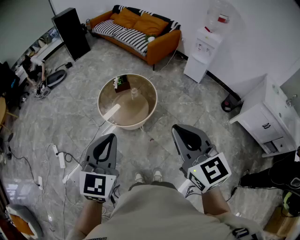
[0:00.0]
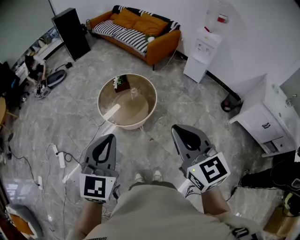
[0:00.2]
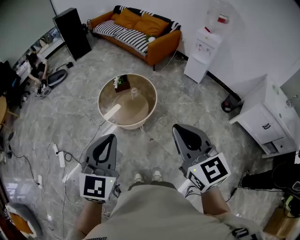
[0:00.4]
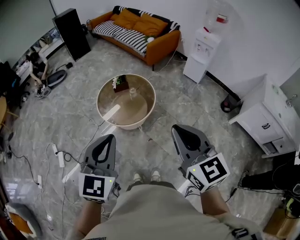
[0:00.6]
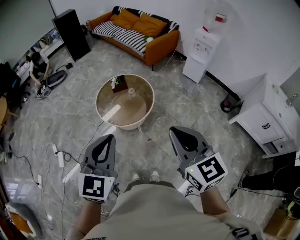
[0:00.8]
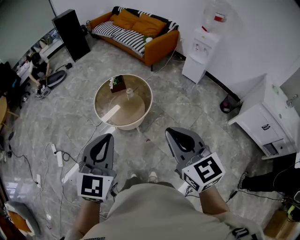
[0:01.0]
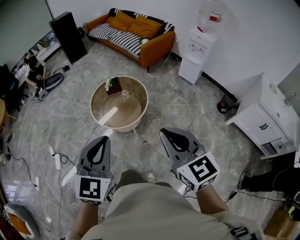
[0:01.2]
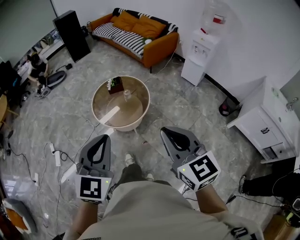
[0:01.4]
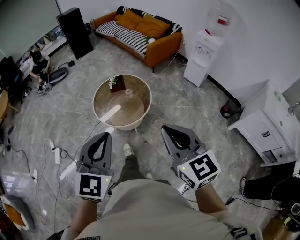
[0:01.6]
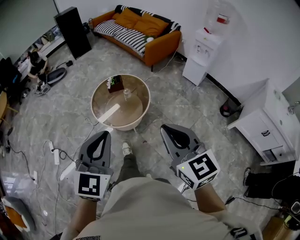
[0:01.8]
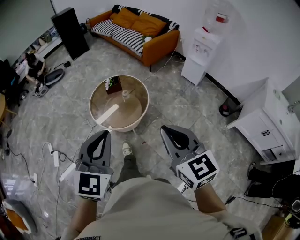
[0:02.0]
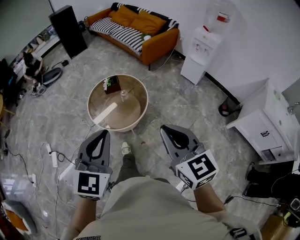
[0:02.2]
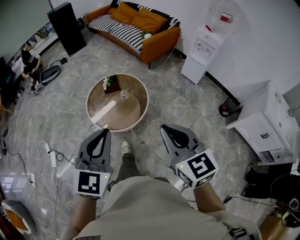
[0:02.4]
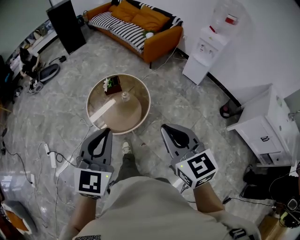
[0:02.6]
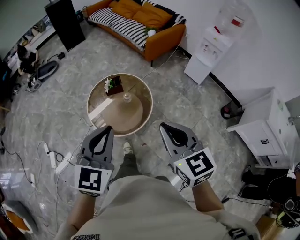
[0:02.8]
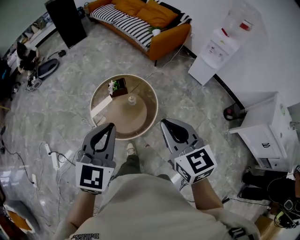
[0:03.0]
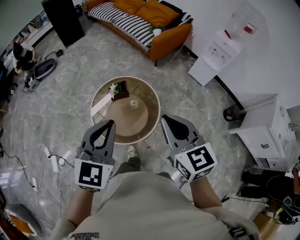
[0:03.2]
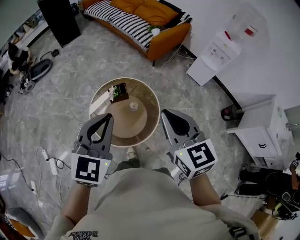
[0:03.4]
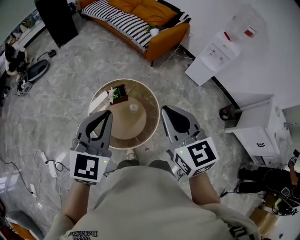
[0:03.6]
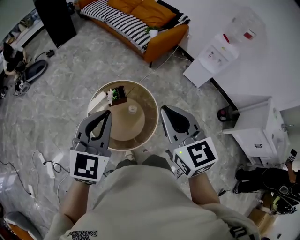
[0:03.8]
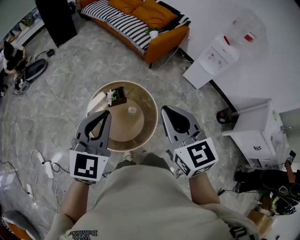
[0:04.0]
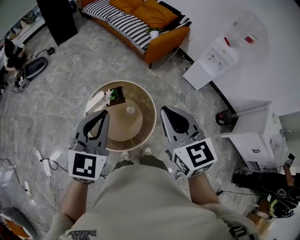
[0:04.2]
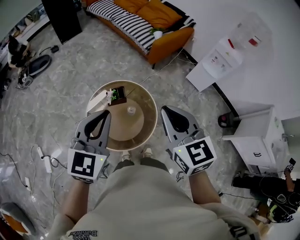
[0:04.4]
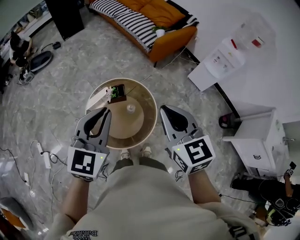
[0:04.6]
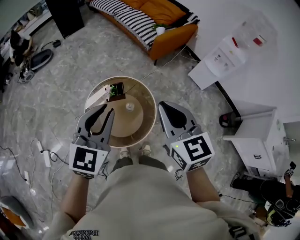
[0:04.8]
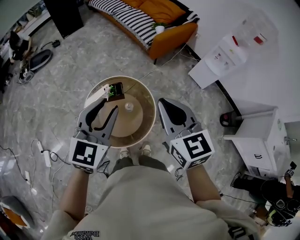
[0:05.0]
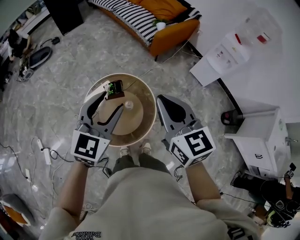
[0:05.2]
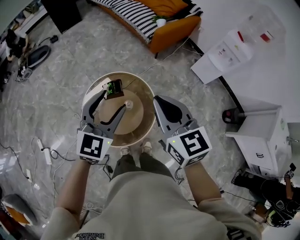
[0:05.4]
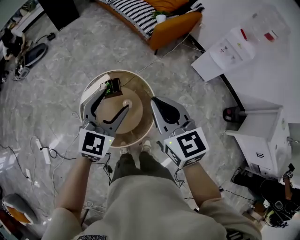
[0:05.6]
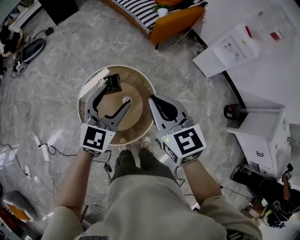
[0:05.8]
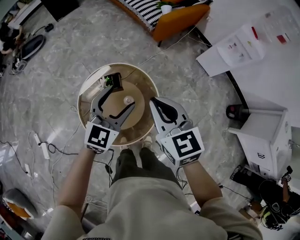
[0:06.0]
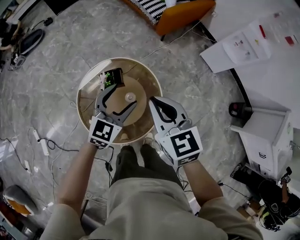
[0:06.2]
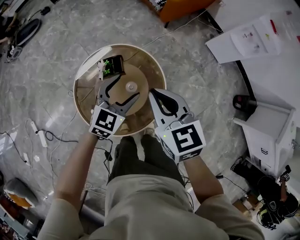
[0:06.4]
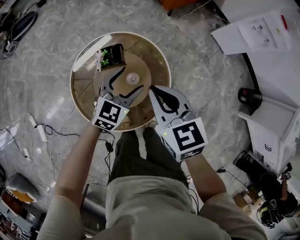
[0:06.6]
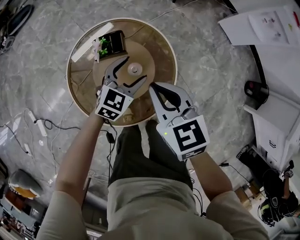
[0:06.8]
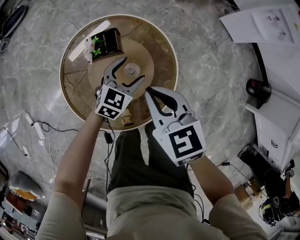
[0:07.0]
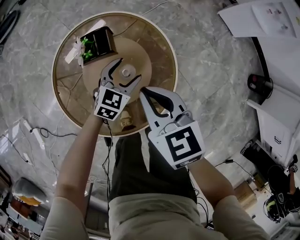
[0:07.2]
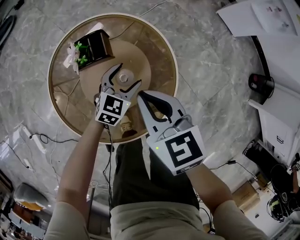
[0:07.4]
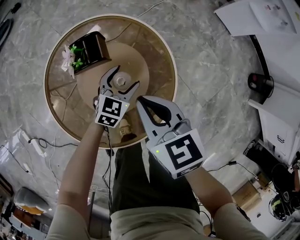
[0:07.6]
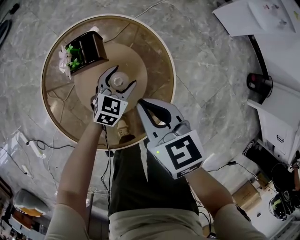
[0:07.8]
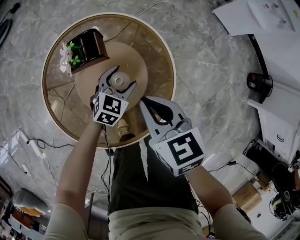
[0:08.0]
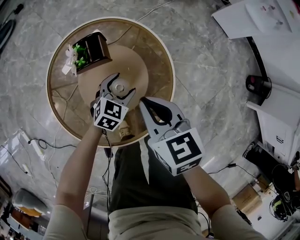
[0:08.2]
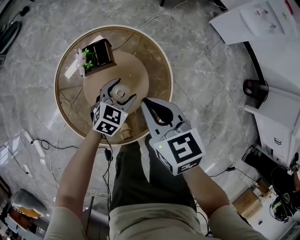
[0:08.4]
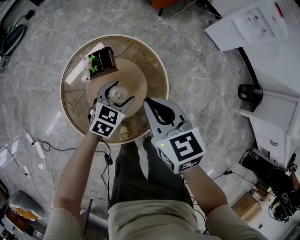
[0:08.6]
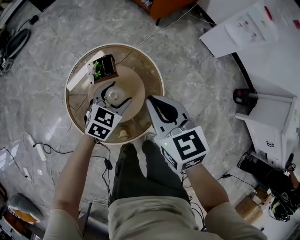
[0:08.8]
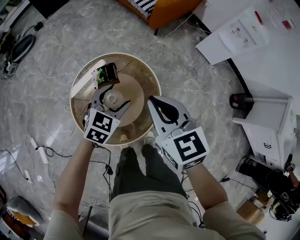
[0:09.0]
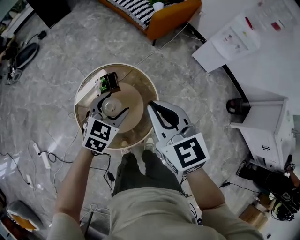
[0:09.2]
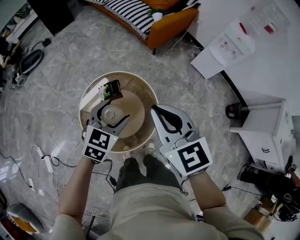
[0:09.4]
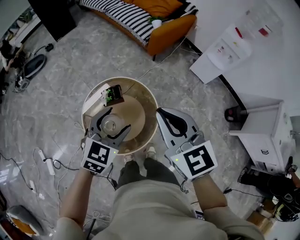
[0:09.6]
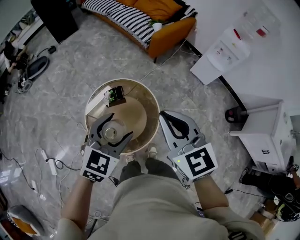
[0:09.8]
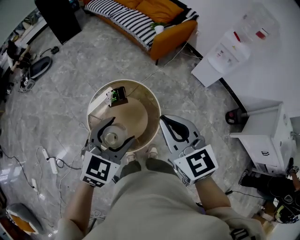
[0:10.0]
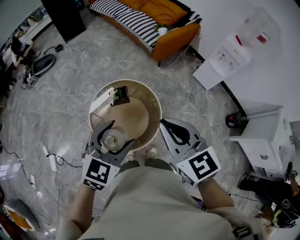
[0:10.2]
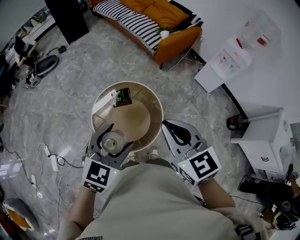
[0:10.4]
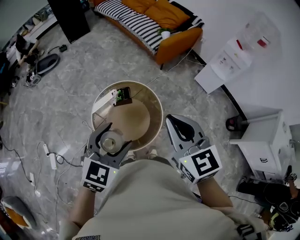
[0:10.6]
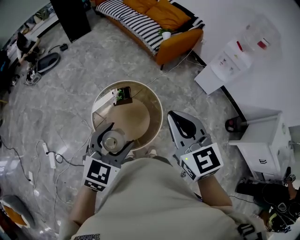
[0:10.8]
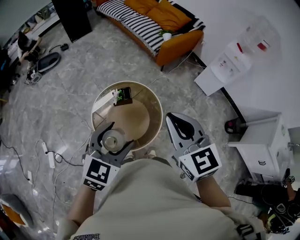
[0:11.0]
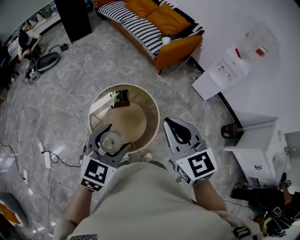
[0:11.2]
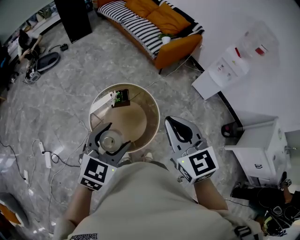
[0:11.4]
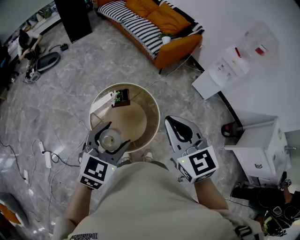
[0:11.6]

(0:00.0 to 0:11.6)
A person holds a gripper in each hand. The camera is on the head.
0:00.0 - 0:01.4: The two grippers go some 10 cm to the right.
0:01.4 - 0:02.8: The two grippers go some 25 cm forward.
0:02.8 - 0:04.4: The right gripper heads forward, covering about 25 cm. The left gripper moves forward and to the left, some 25 cm.
0:04.4 - 0:05.8: The left gripper heads downward, forward and to the right, covering approximately 20 cm, and opens up; the right gripper shifts some 15 cm downward and forward.
0:05.8 - 0:07.2: Both grippers move downward, some 40 cm. The left gripper rotates some 20 degrees.
0:07.2 - 0:08.8: Both grippers travel together upward, approximately 15 cm.
0:08.8 - 0:10.2: The two grippers go some 35 cm upward and backward.
0:10.2 - 0:11.6: The grippers make only small movements.

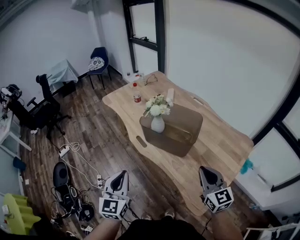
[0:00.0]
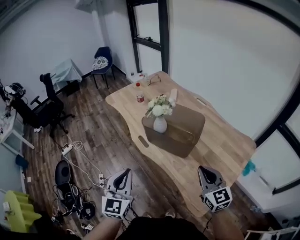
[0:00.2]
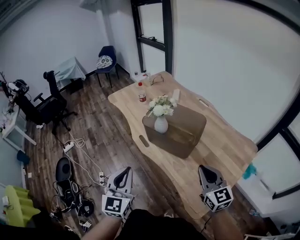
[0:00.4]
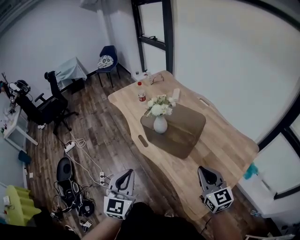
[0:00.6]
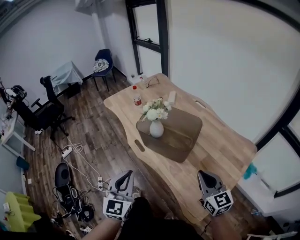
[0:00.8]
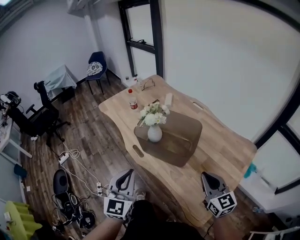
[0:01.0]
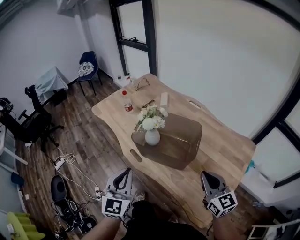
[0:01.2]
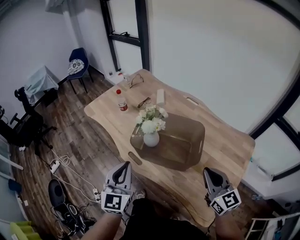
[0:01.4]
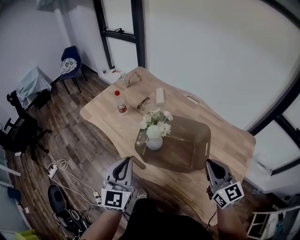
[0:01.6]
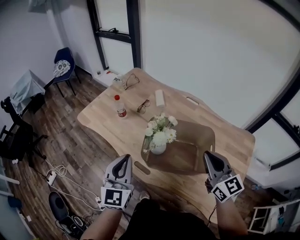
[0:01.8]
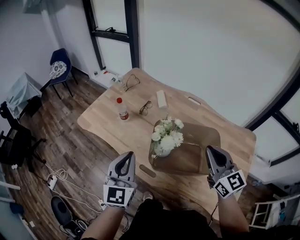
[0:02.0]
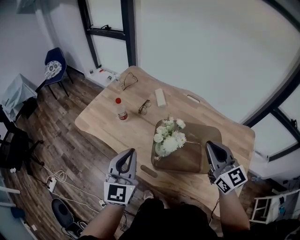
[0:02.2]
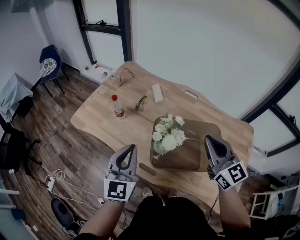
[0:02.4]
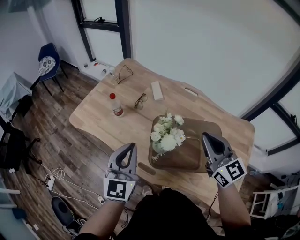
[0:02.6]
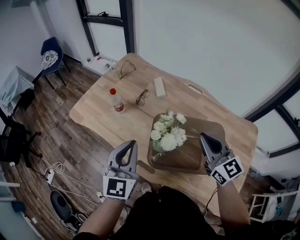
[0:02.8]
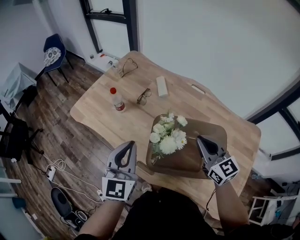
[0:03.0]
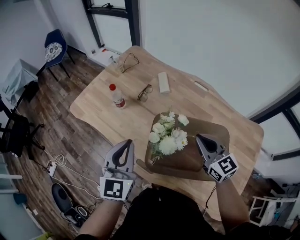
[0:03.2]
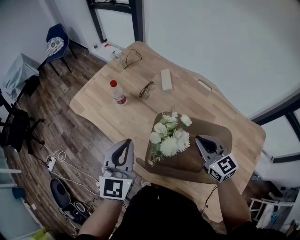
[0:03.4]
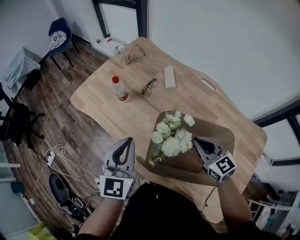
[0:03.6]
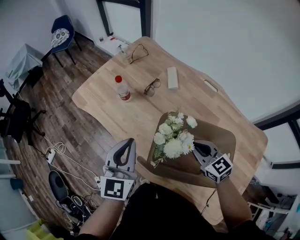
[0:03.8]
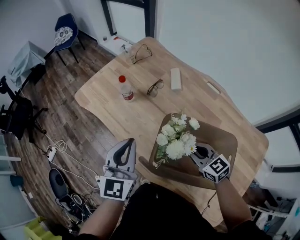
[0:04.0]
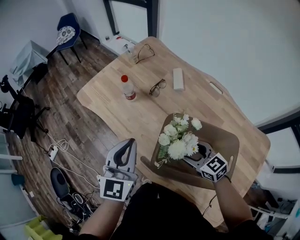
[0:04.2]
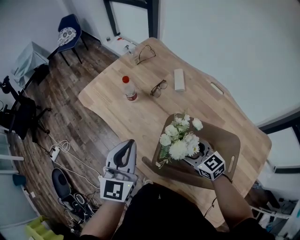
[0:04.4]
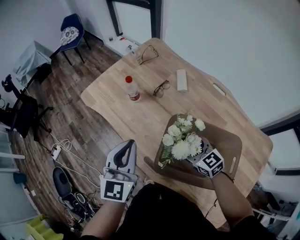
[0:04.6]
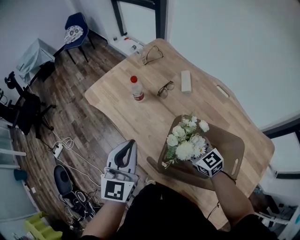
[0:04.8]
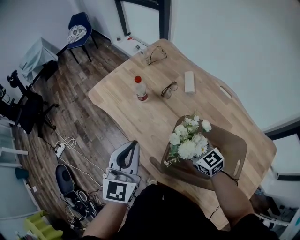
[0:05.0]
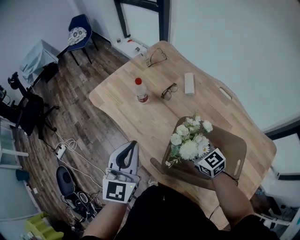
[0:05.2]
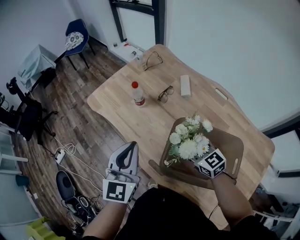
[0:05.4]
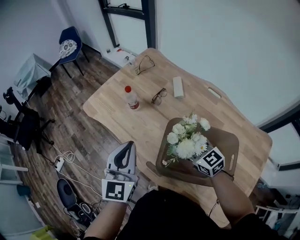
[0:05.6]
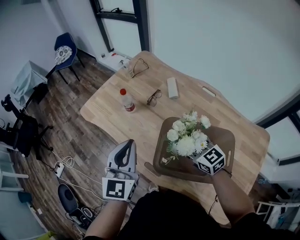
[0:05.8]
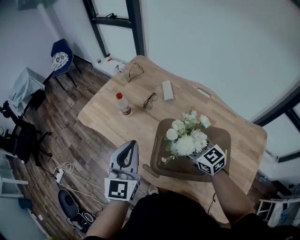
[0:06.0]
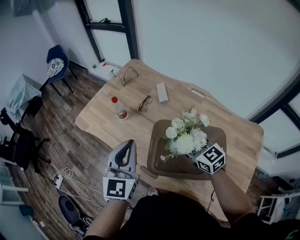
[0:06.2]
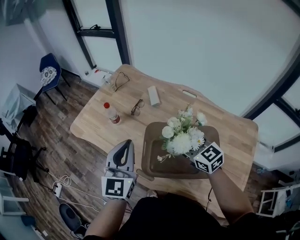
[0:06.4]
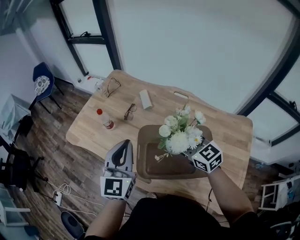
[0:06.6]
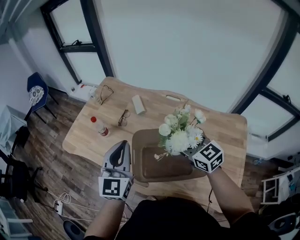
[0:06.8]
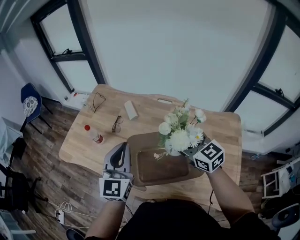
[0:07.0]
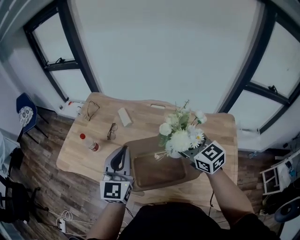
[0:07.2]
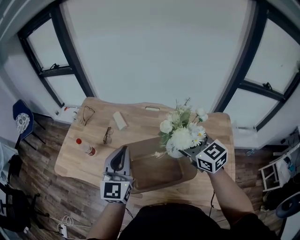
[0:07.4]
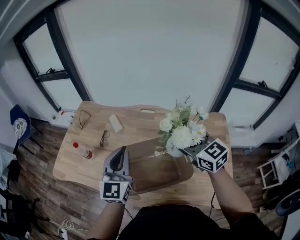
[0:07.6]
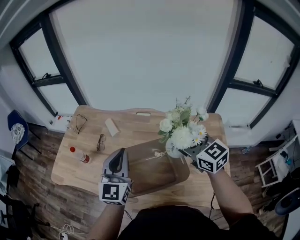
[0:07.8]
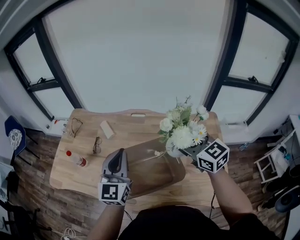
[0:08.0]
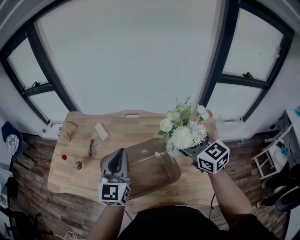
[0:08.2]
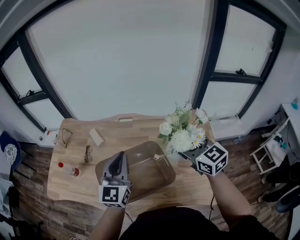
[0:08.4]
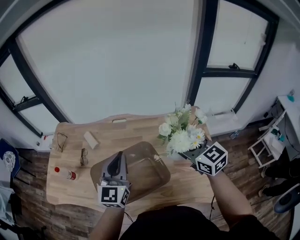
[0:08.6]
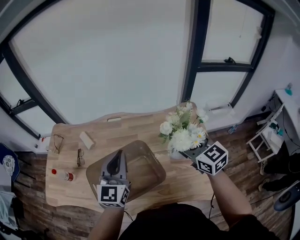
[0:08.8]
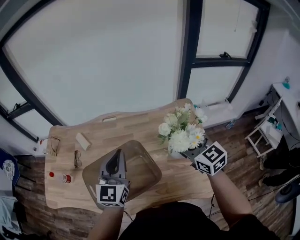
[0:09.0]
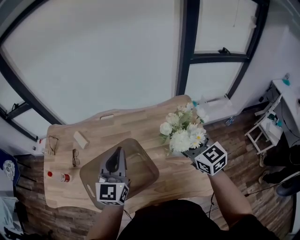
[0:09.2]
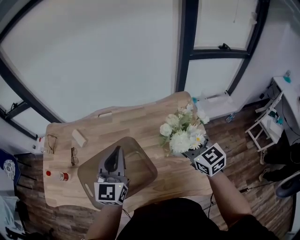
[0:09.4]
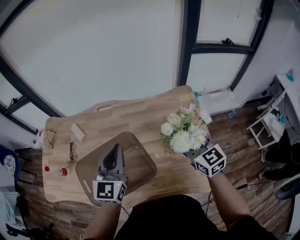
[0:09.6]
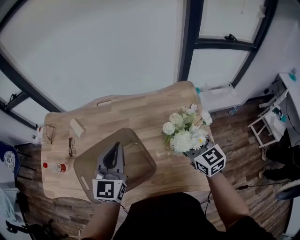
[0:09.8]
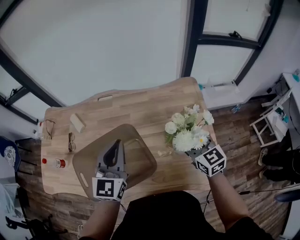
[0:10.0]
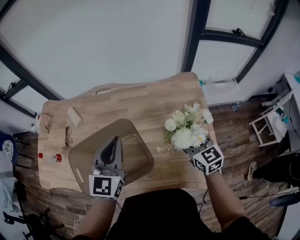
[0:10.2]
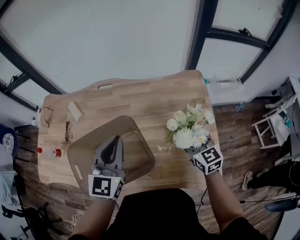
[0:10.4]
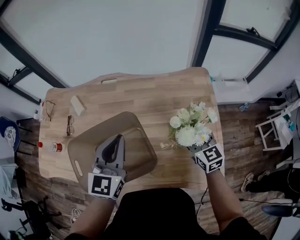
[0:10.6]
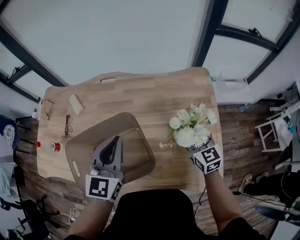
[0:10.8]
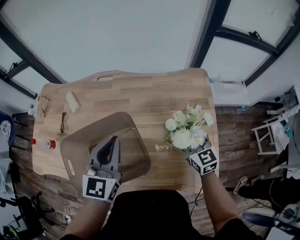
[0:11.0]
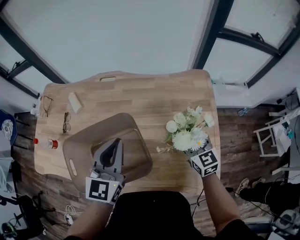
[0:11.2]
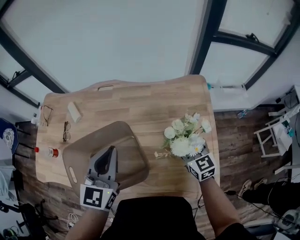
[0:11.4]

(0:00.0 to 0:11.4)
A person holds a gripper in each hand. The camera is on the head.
0:00.0 - 0:01.4: The right gripper heads forward, covering about 10 cm. Meanwhile the left gripper moves forward, roughly 20 cm.
0:01.4 - 0:02.8: The right gripper shifts some 25 cm forward and to the left; the left gripper heads forward, covering approximately 20 cm.
0:02.8 - 0:04.2: The right gripper heads downward, covering about 20 cm, swivels approximately 40 degrees, and opens.
0:04.2 - 0:05.6: The right gripper shifts by approximately 5 cm.
0:05.6 - 0:07.2: The left gripper moves some 15 cm, and rotates about 30 degrees; the right gripper changes place by some 20 cm, and swivels approximately 30 degrees.
0:07.2 - 0:08.6: The two grippers go roughly 15 cm to the right.
0:08.6 - 0:10.0: The right gripper travels downward and to the right by roughly 15 cm; the left gripper moves to the right and downward, approximately 10 cm.
0:10.0 - 0:11.4: The right gripper shifts roughly 10 cm downward.

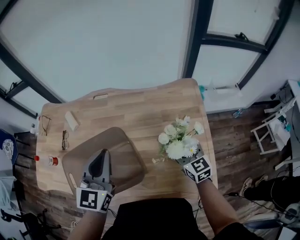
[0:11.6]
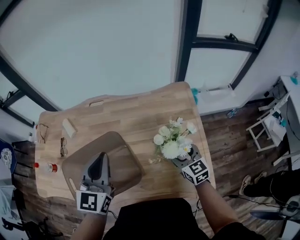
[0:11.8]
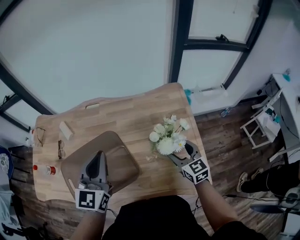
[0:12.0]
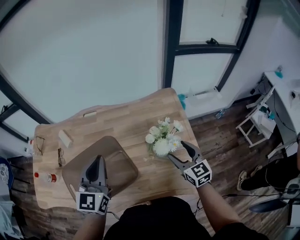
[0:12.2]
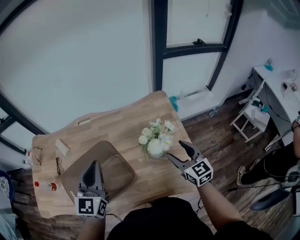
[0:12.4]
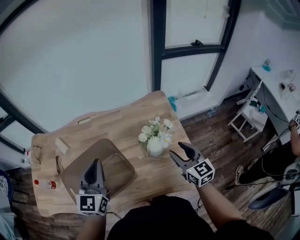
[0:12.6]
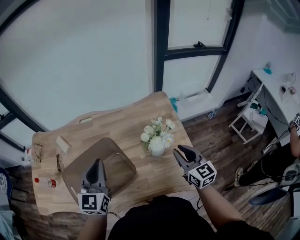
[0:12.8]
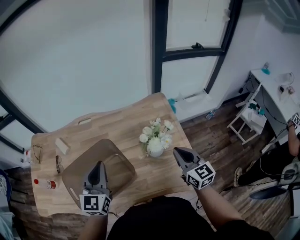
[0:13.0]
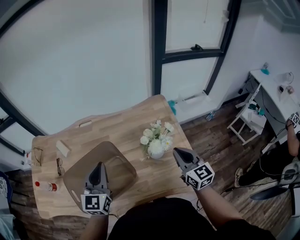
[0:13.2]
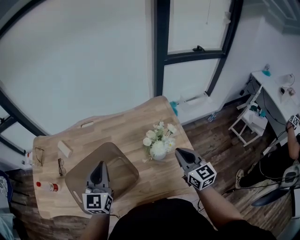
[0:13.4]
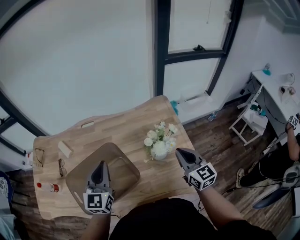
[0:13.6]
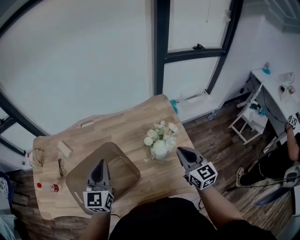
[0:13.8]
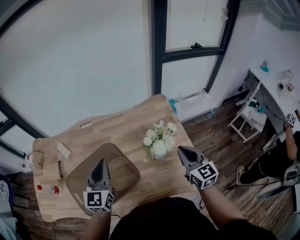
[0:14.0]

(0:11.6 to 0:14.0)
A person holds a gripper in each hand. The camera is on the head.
0:11.6 - 0:12.8: The right gripper shifts about 15 cm upward, backward and to the right, and closes.
0:12.8 - 0:14.0: The grippers make only small movements.
